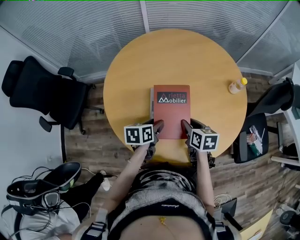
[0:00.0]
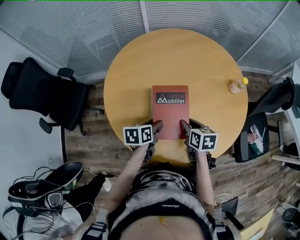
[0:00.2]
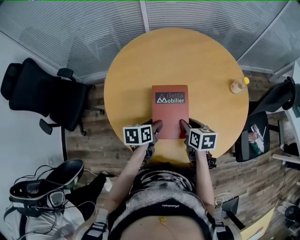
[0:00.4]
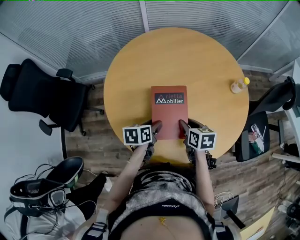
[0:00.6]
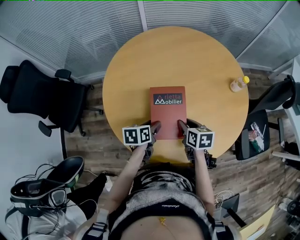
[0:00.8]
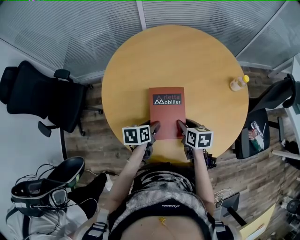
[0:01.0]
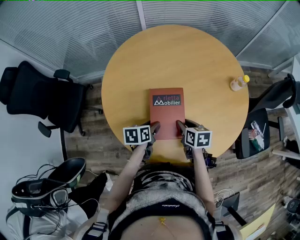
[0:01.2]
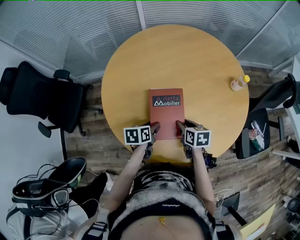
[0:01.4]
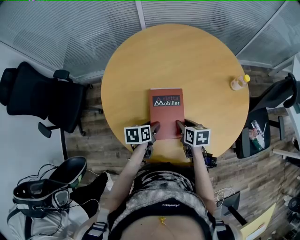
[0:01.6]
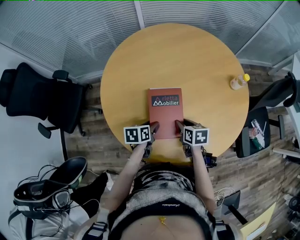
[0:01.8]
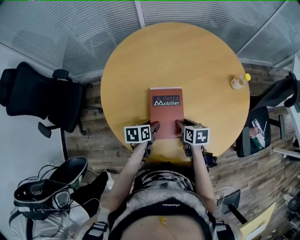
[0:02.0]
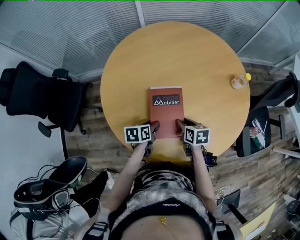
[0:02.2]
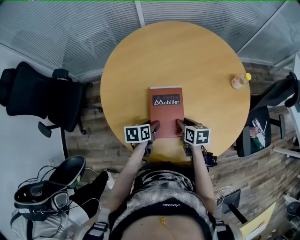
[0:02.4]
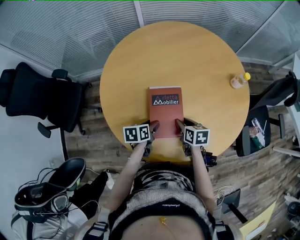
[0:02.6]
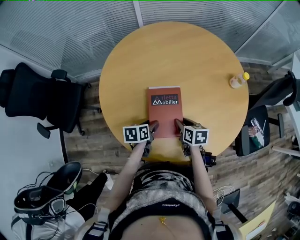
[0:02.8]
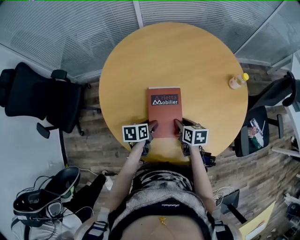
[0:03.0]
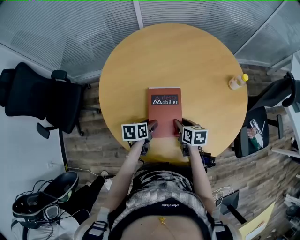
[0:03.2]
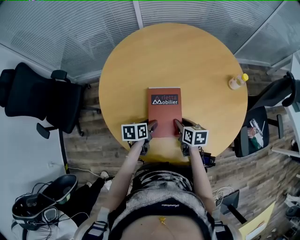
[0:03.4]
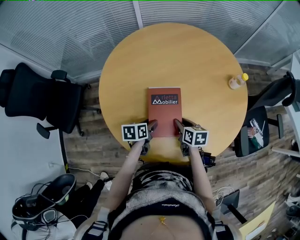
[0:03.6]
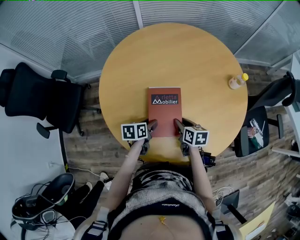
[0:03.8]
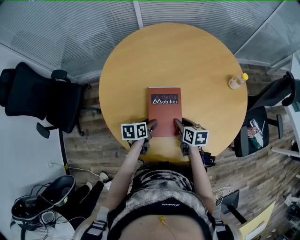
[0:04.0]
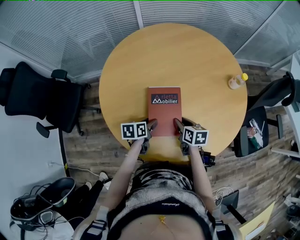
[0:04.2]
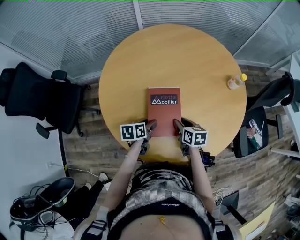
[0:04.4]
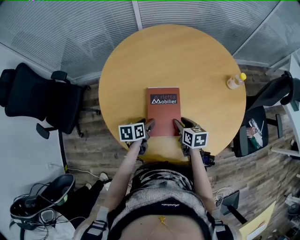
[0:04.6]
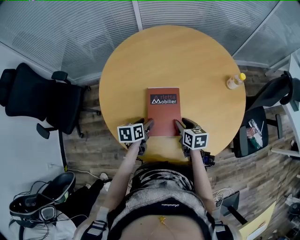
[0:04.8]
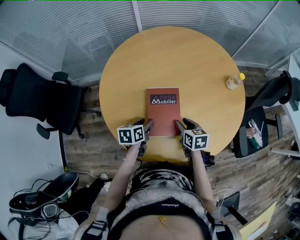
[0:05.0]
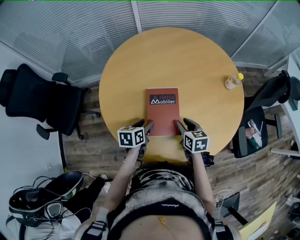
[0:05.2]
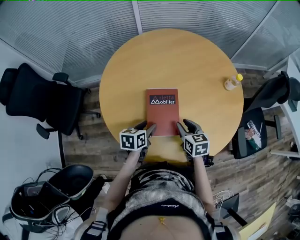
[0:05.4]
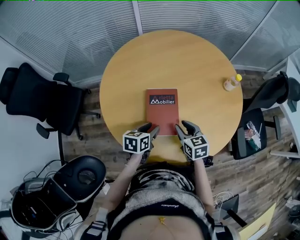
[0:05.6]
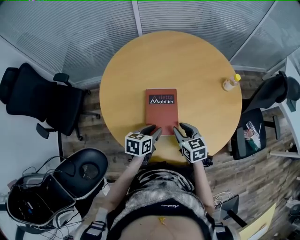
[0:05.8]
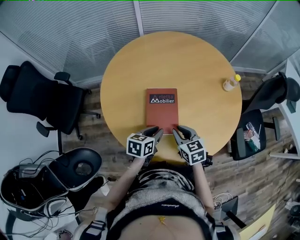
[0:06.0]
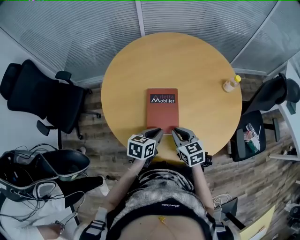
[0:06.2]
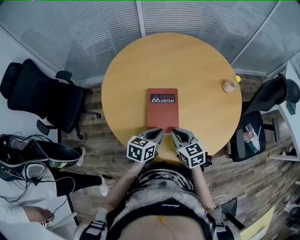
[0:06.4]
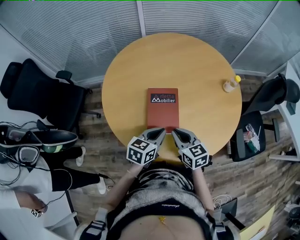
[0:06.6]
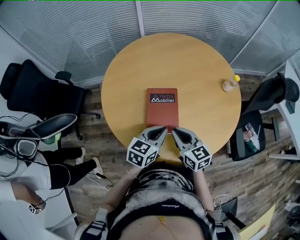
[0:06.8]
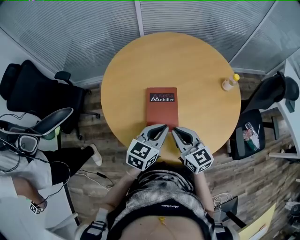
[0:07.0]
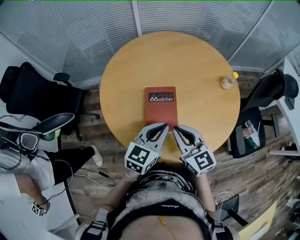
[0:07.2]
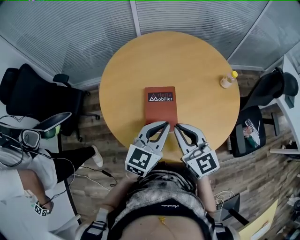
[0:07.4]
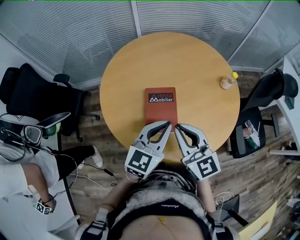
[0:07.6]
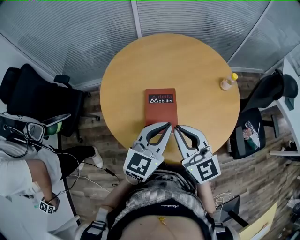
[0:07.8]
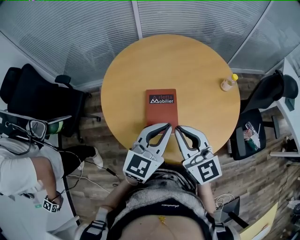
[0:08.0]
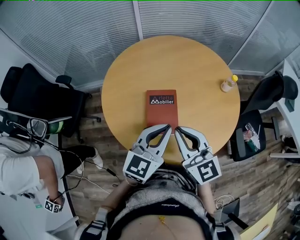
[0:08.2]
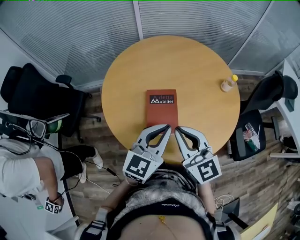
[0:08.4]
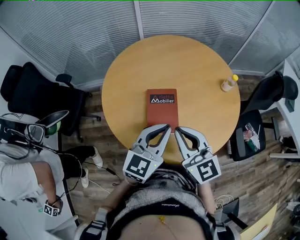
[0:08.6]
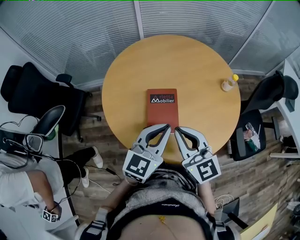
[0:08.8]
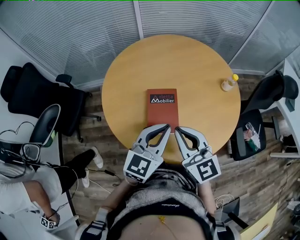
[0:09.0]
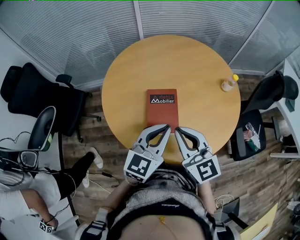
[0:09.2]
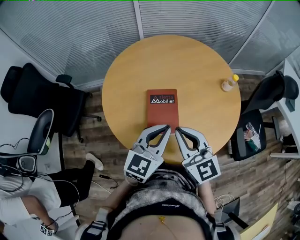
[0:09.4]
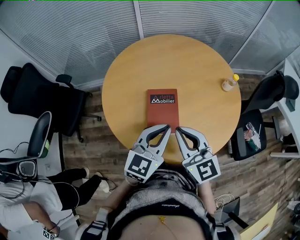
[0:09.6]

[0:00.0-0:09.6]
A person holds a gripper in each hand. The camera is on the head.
0:00.0 to 0:01.6: The grippers both shift backward by roughly 5 cm.
0:01.6 to 0:03.2: The grippers both shift forward and downward by approximately 10 cm.
0:03.2 to 0:04.8: The grippers move only a little.
0:04.8 to 0:06.4: The left gripper shifts some 15 cm upward, to the right and backward, turns by about 20 degrees, and closes. The right gripper shifts some 10 cm upward and backward, swivels approximately 20 degrees, and closes its fingers.
0:06.4 to 0:08.0: The two grippers go some 20 cm upward. The left gripper rotates approximately 40 degrees. The right gripper tilts its fingers roughly 30 degrees upward.
0:08.0 to 0:09.6: There are only small adjustments of the grippers.

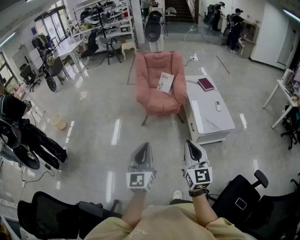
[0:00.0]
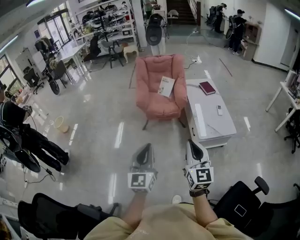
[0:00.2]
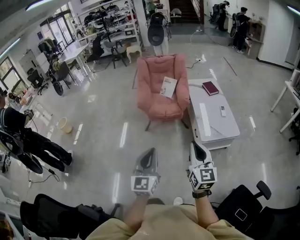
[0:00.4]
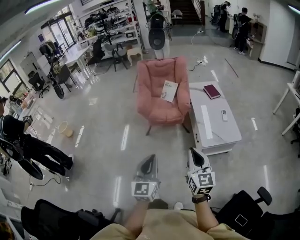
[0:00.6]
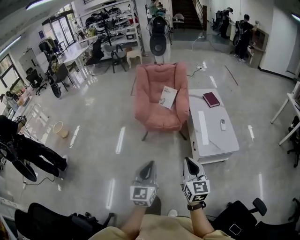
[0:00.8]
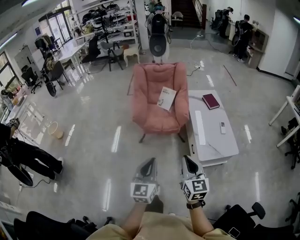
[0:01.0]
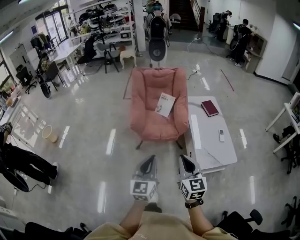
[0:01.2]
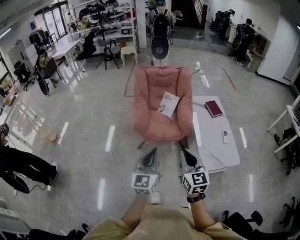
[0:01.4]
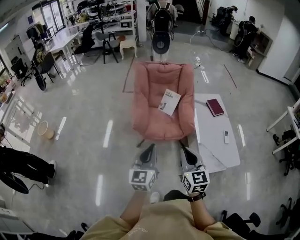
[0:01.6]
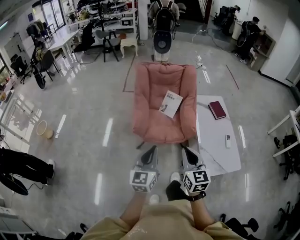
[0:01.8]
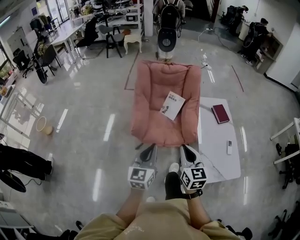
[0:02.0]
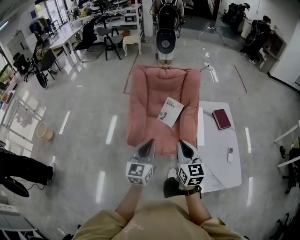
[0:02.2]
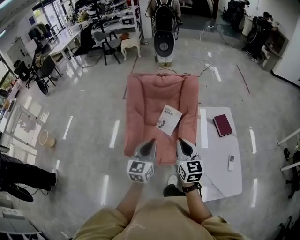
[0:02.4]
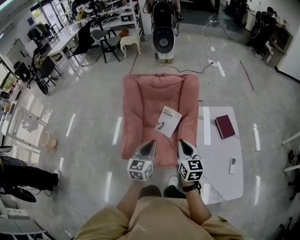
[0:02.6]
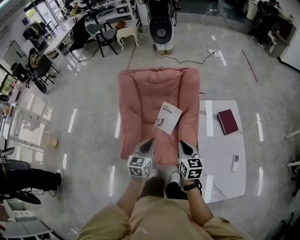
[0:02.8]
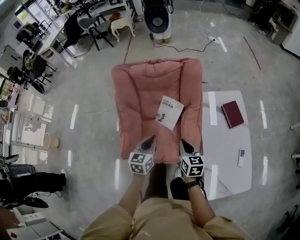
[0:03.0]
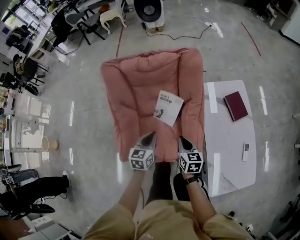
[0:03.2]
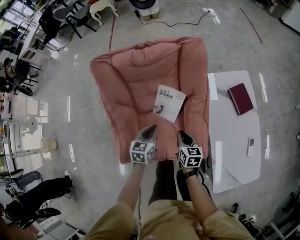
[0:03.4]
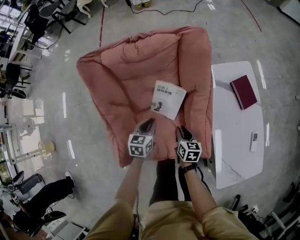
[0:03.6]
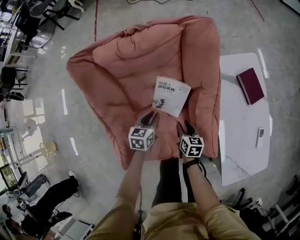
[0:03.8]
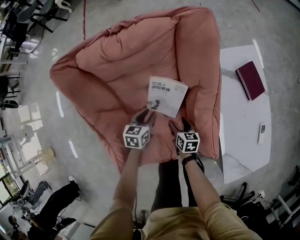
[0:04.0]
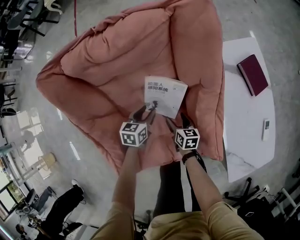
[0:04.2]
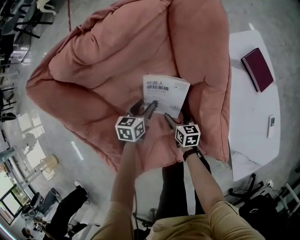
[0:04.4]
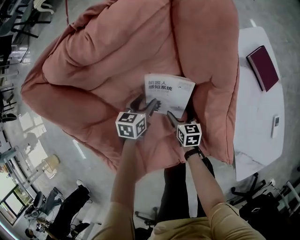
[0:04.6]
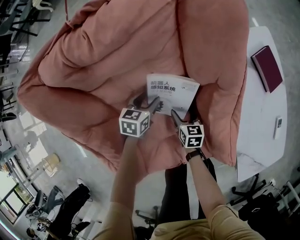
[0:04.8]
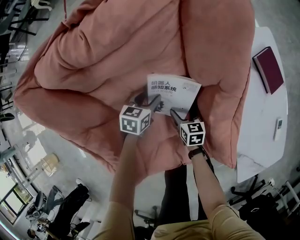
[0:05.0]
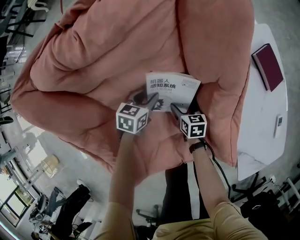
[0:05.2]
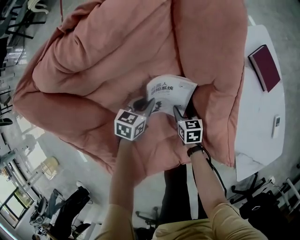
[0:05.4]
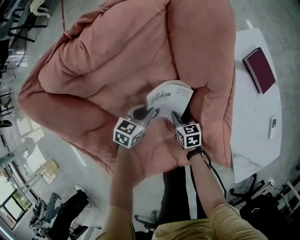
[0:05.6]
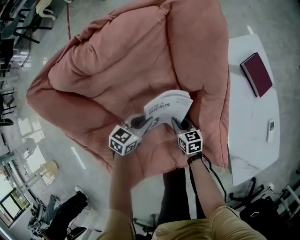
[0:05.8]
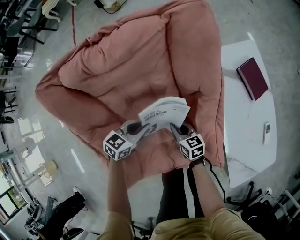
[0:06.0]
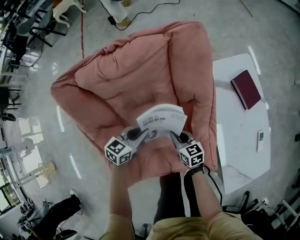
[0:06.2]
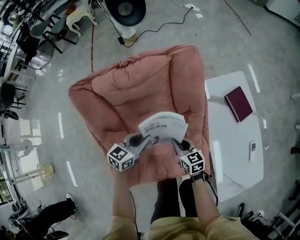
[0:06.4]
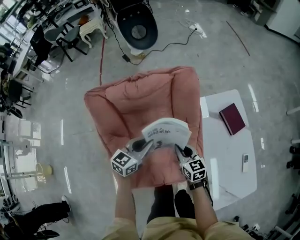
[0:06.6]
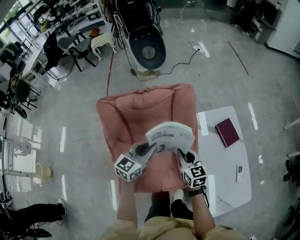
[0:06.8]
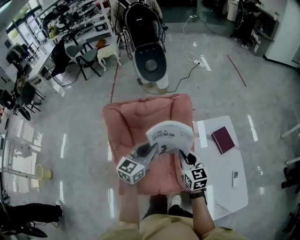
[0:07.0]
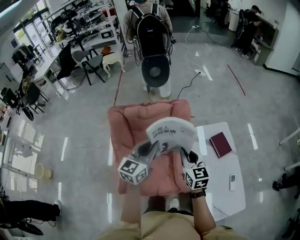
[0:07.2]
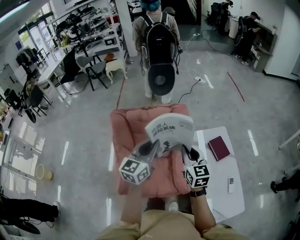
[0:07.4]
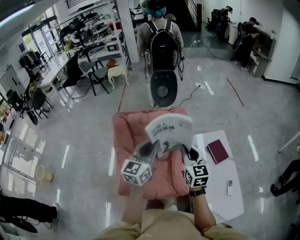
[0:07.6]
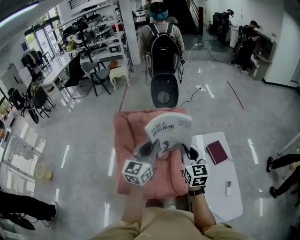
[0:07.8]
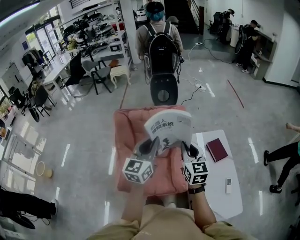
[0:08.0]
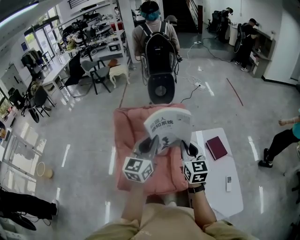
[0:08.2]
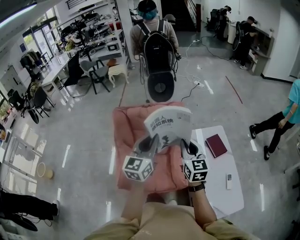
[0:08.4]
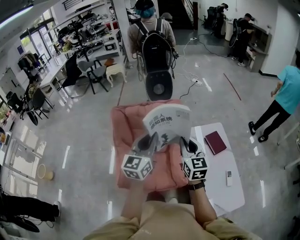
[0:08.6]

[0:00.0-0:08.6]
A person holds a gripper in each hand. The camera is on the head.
0:00.0 to 0:01.4: The grippers both shift forward by about 40 cm.
0:01.4 to 0:02.8: The pair of grippers is taken forward, approximately 50 cm. The right gripper changes its angle by approximately 20 degrees, while the left gripper changes its angle by about 20 degrees.
0:02.8 to 0:04.4: The two grippers go roughly 60 cm downward and forward. The right gripper rotates some 30 degrees, and opens its fingers. Meanwhile the left gripper changes its angle by roughly 40 degrees, and opens up.
0:04.4 to 0:05.8: The left gripper changes place by some 5 cm, turns by some 30 degrees, and closes. Meanwhile the right gripper closes its fingers.
0:05.8 to 0:07.2: Both grippers move upward, roughly 60 cm. The left gripper tilts its fingers some 30 degrees upward, while the right gripper rotates roughly 40 degrees.
0:07.2 to 0:08.6: Both grippers move upward and backward, approximately 15 cm.

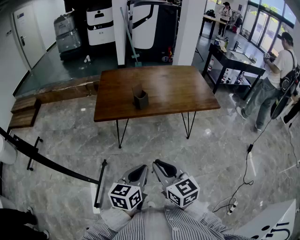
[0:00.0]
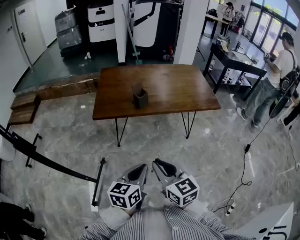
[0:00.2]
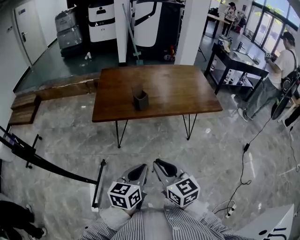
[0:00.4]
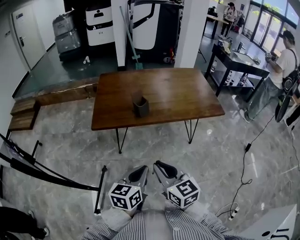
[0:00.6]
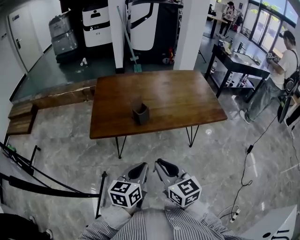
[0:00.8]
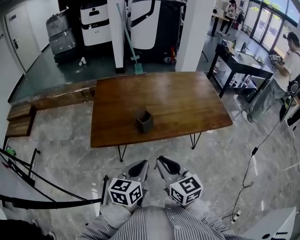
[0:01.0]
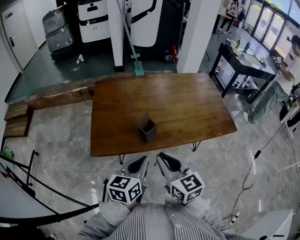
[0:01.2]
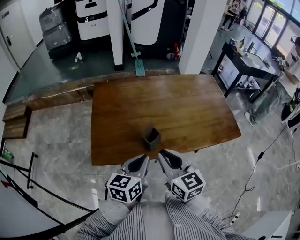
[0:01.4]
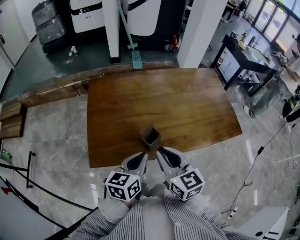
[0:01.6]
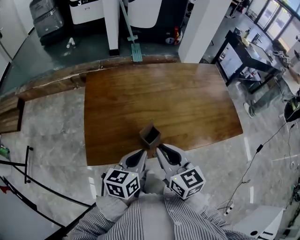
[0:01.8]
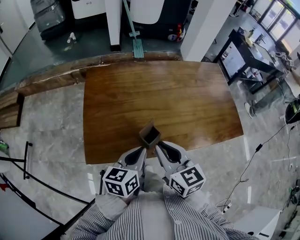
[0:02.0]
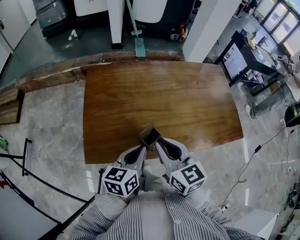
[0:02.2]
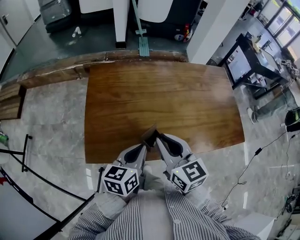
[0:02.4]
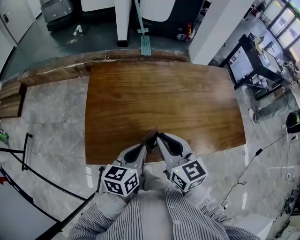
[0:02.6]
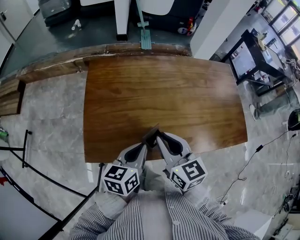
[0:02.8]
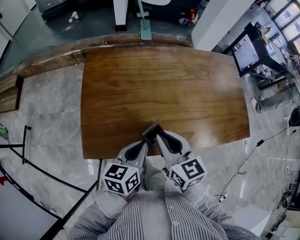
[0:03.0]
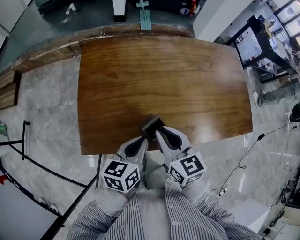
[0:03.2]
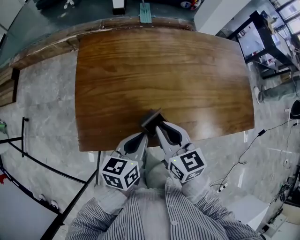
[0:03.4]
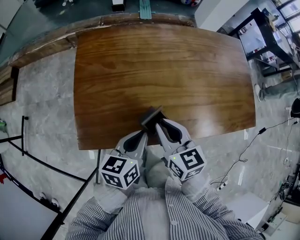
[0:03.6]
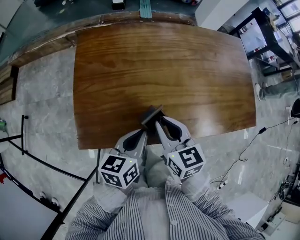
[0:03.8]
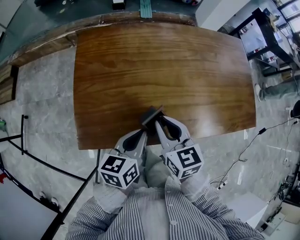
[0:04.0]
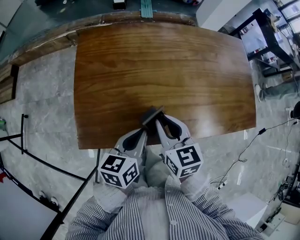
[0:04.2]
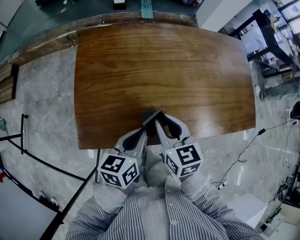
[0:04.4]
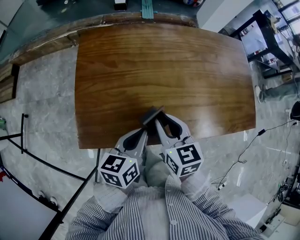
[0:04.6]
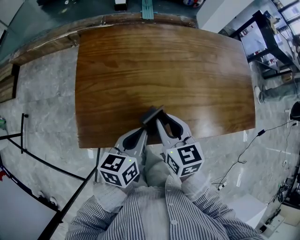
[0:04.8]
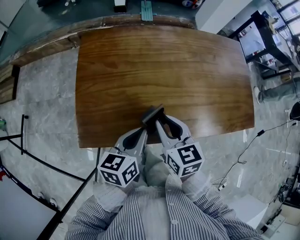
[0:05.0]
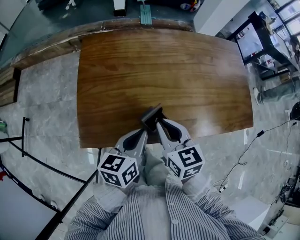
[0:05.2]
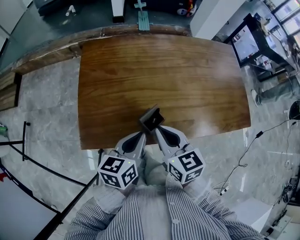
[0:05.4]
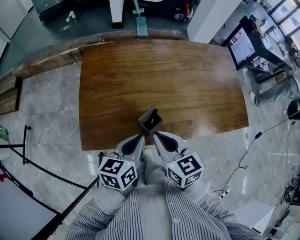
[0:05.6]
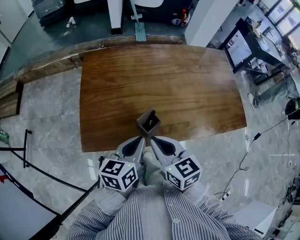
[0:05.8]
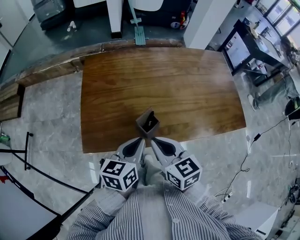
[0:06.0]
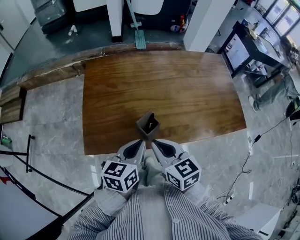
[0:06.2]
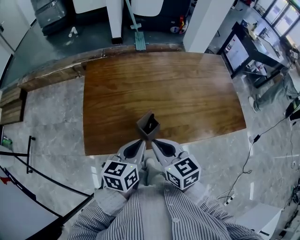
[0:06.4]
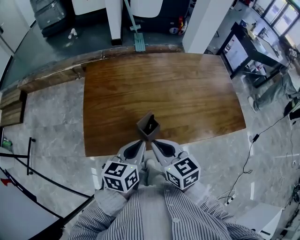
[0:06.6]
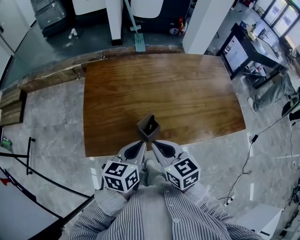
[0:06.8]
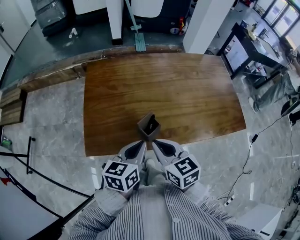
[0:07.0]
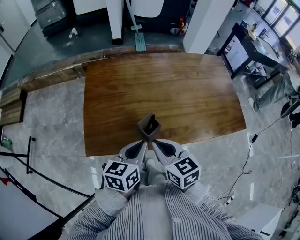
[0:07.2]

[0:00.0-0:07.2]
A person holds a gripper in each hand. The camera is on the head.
0:00.0 to 0:01.4: The two grippers go roughly 40 cm forward.
0:01.4 to 0:02.8: The two grippers go some 10 cm forward.
0:02.8 to 0:04.4: The right gripper shifts roughly 10 cm downward.
0:04.4 to 0:05.8: The right gripper goes roughly 10 cm backward and upward, while the left gripper shifts by about 5 cm.
0:05.8 to 0:07.2: Neither gripper changes place.
